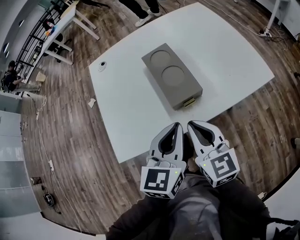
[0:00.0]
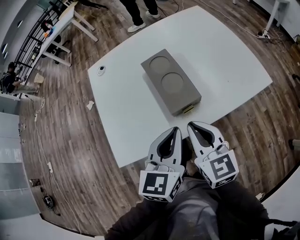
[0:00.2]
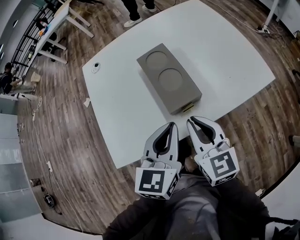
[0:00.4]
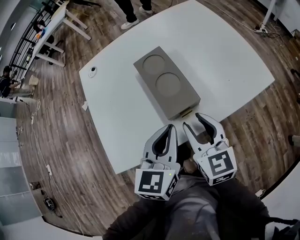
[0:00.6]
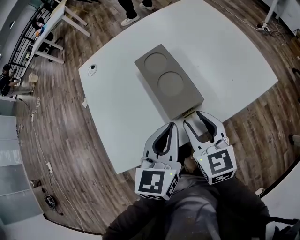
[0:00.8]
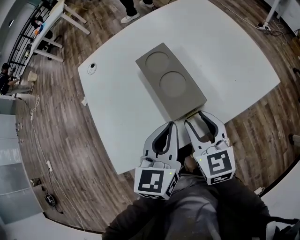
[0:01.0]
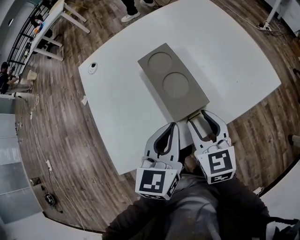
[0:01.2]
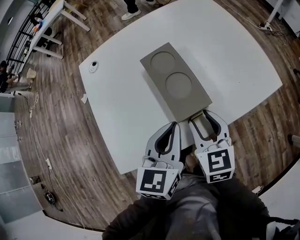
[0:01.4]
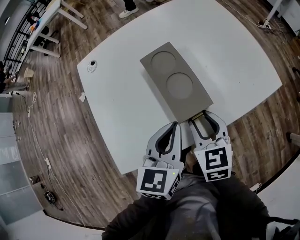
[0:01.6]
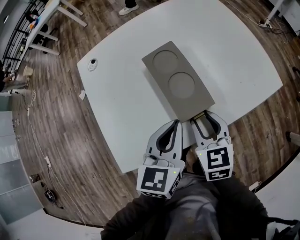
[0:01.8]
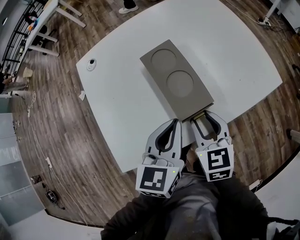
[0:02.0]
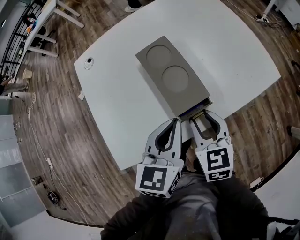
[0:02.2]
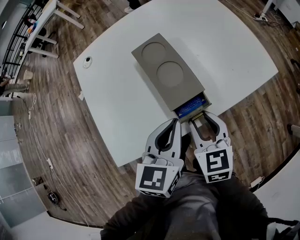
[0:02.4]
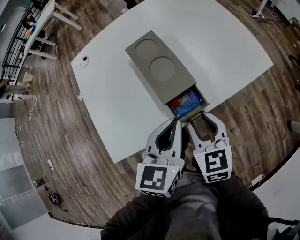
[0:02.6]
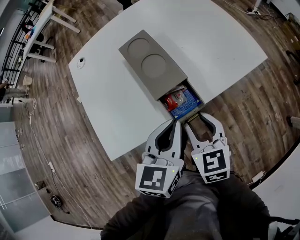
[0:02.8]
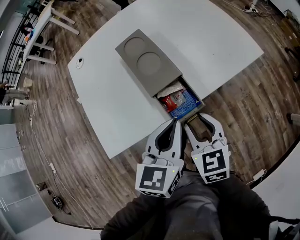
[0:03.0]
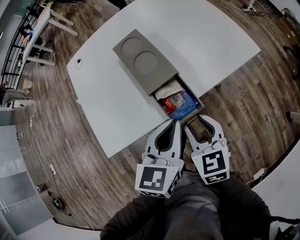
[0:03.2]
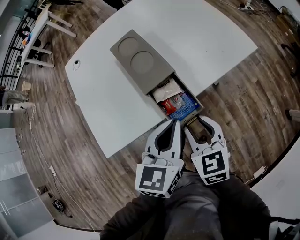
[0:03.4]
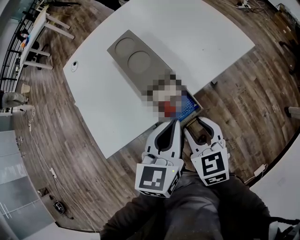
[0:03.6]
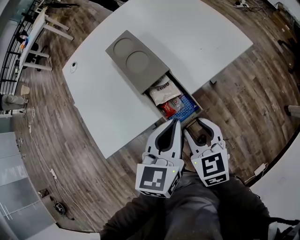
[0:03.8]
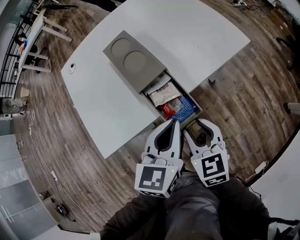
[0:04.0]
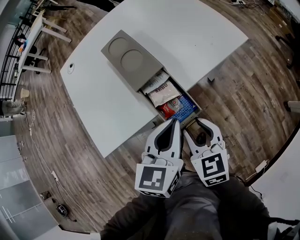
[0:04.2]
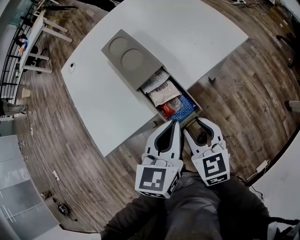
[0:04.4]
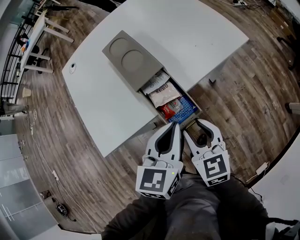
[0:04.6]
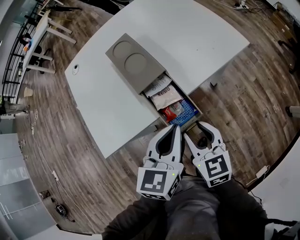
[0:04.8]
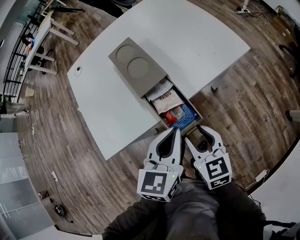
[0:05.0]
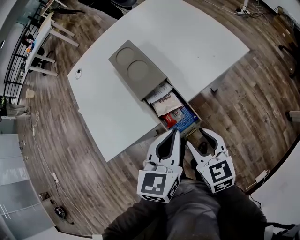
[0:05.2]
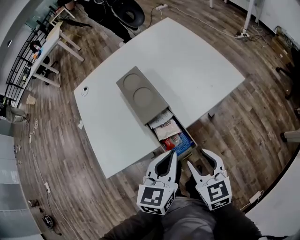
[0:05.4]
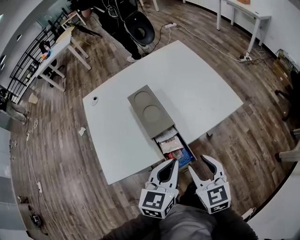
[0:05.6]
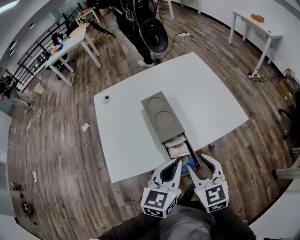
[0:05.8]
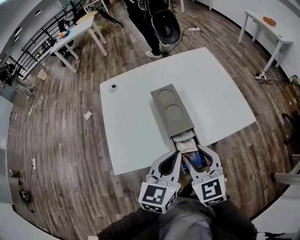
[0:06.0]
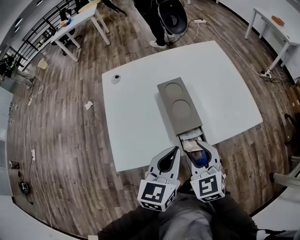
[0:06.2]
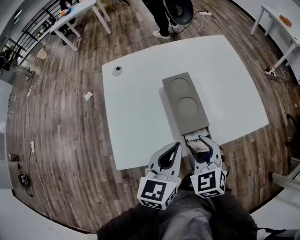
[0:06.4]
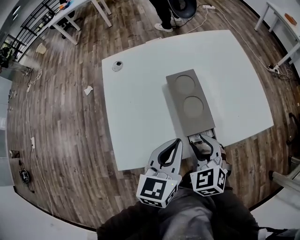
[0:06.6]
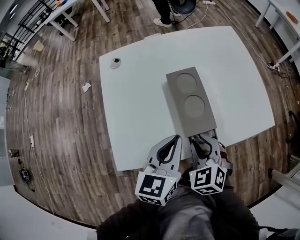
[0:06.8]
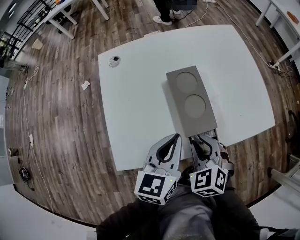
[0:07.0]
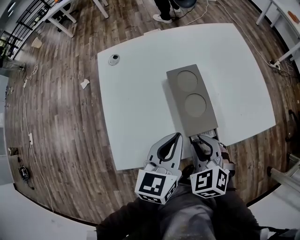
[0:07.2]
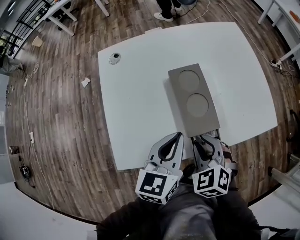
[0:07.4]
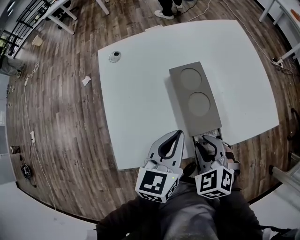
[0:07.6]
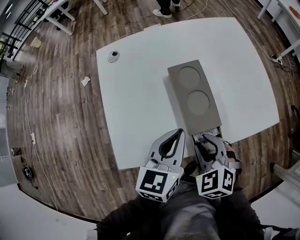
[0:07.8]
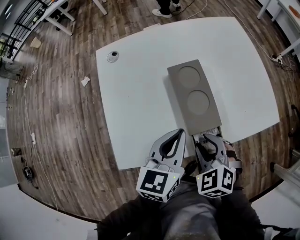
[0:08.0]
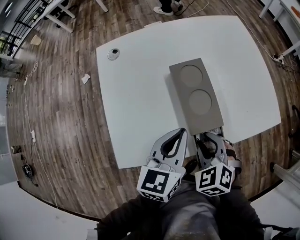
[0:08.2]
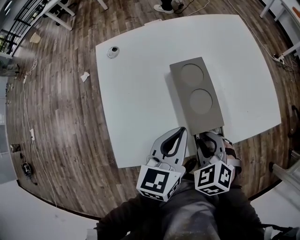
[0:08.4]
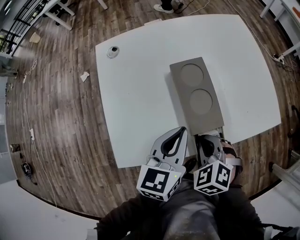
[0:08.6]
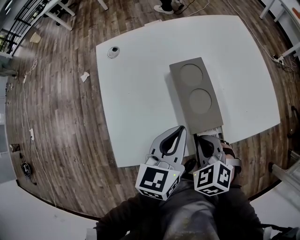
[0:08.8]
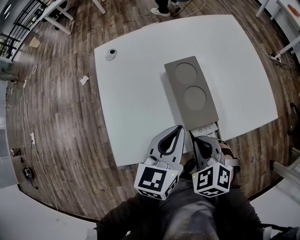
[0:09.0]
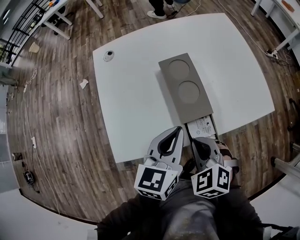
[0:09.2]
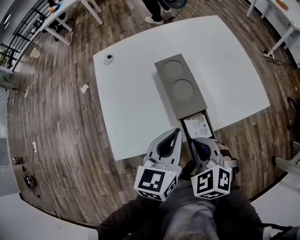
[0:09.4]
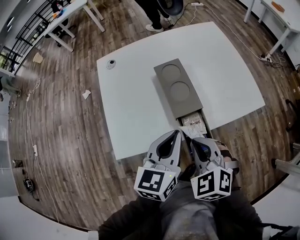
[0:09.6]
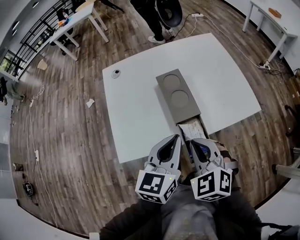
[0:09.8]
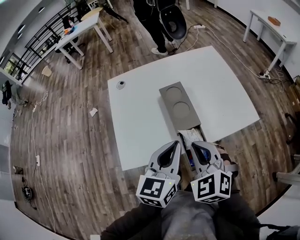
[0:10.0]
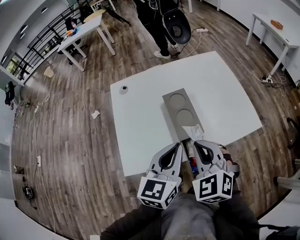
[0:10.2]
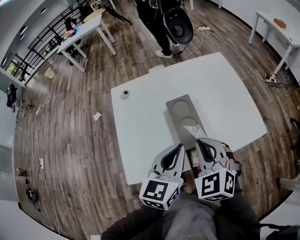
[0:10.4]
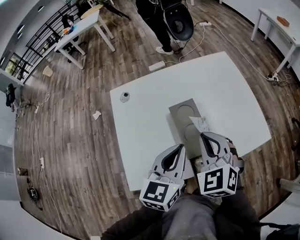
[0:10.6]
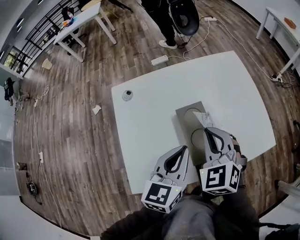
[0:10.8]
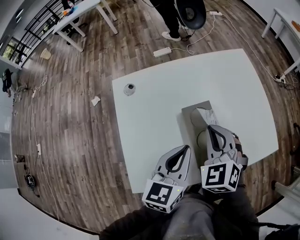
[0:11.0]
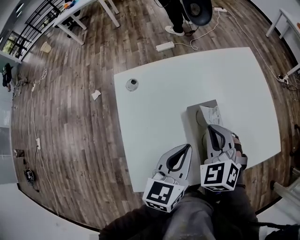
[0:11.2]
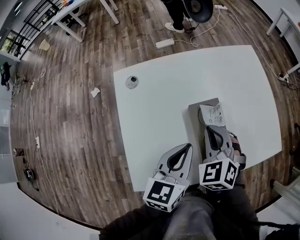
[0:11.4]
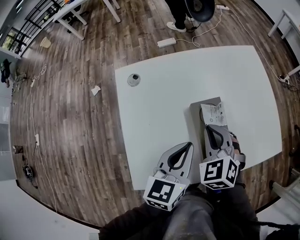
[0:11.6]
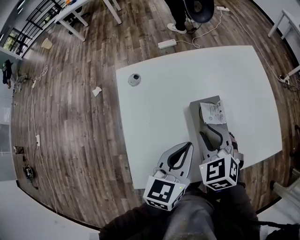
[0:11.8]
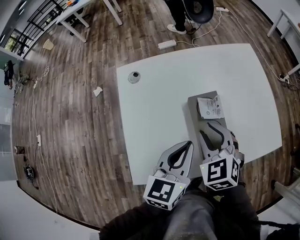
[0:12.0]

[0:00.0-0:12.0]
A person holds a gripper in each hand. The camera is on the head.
0:00.0 to 0:01.6: The left gripper heads forward, covering about 5 cm; the right gripper goes some 10 cm forward and downward, rotates approximately 20 degrees, and opens up.
0:01.6 to 0:03.0: The left gripper goes some 10 cm backward and to the right; the right gripper shifts some 10 cm backward.
0:03.0 to 0:04.4: The right gripper goes approximately 5 cm backward.
0:04.4 to 0:06.0: The right gripper goes roughly 15 cm upward and forward, and changes its angle by some 20 degrees. The left gripper goes approximately 10 cm upward.
0:06.0 to 0:07.6: The left gripper moves forward, to the left and downward, some 10 cm; the right gripper heads downward and forward, covering about 10 cm, and turns by some 30 degrees.
0:07.6 to 0:09.0: There are only small adjustments of the grippers.
0:09.0 to 0:10.4: The left gripper is displaced upward by some 10 cm; the right gripper is displaced upward by approximately 15 cm, and turns by some 20 degrees.
0:10.4 to 0:12.0: The right gripper shifts approximately 15 cm forward, downward and to the left. Meanwhile the left gripper heads forward, to the left and downward, covering some 10 cm.

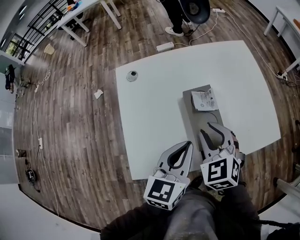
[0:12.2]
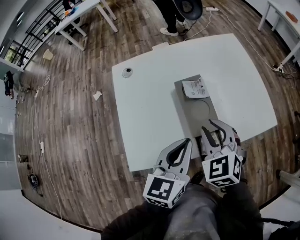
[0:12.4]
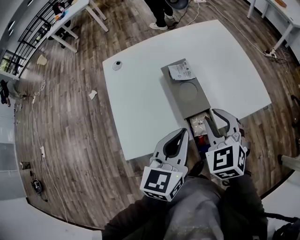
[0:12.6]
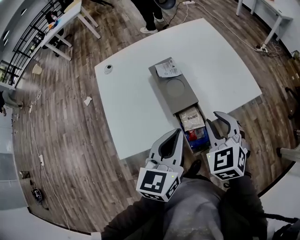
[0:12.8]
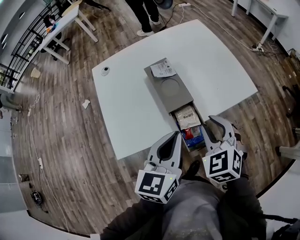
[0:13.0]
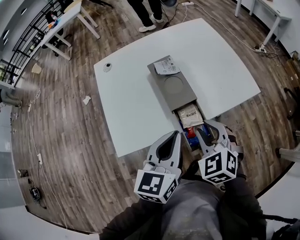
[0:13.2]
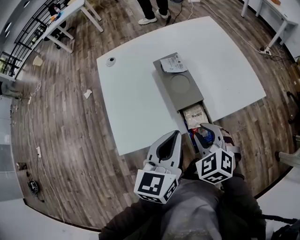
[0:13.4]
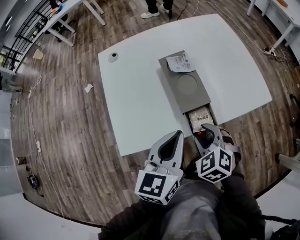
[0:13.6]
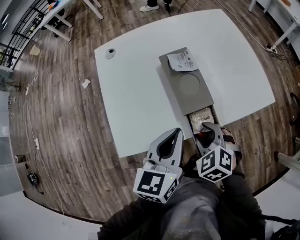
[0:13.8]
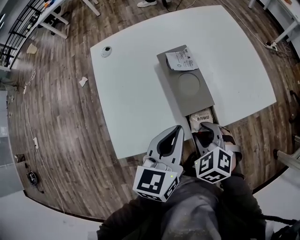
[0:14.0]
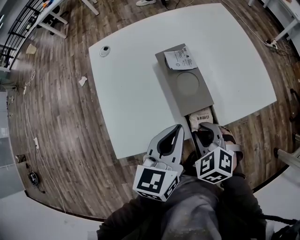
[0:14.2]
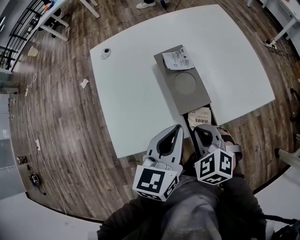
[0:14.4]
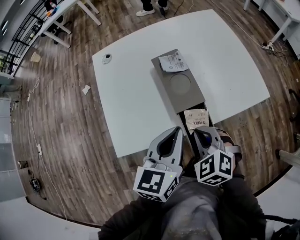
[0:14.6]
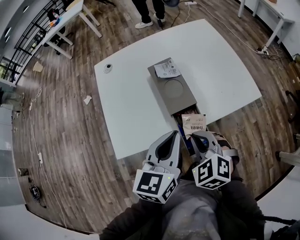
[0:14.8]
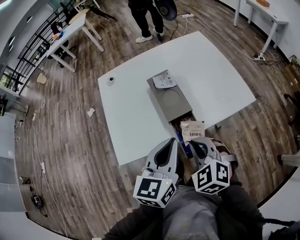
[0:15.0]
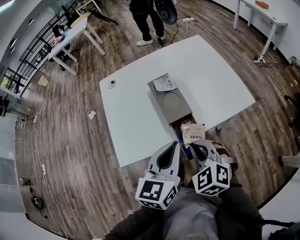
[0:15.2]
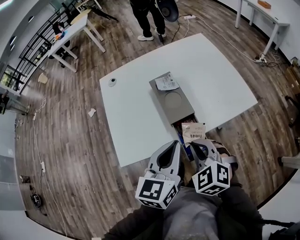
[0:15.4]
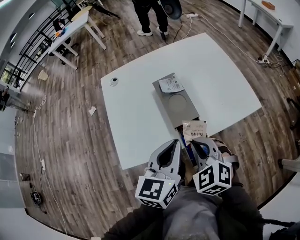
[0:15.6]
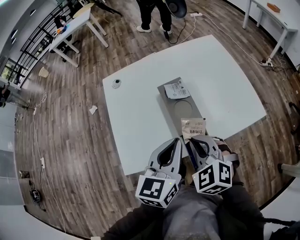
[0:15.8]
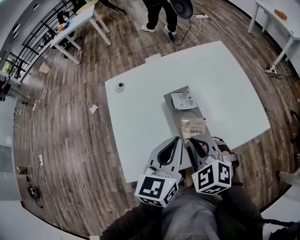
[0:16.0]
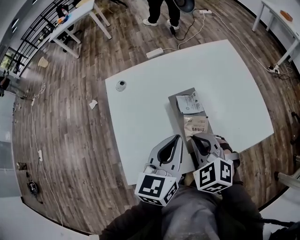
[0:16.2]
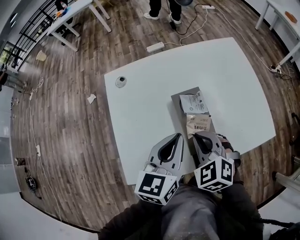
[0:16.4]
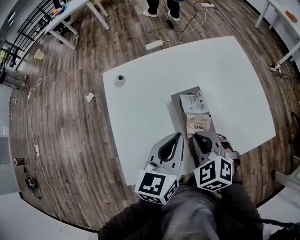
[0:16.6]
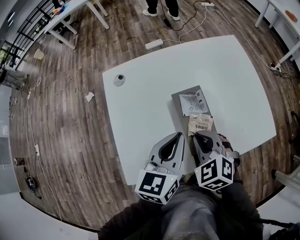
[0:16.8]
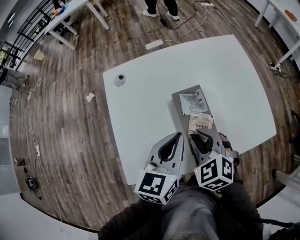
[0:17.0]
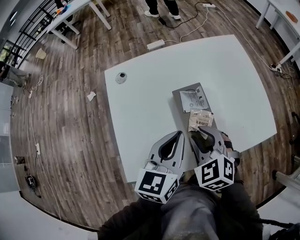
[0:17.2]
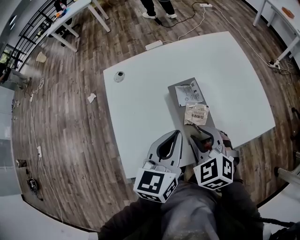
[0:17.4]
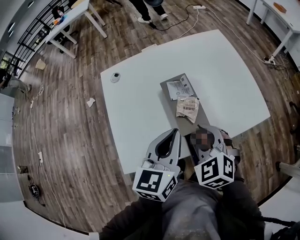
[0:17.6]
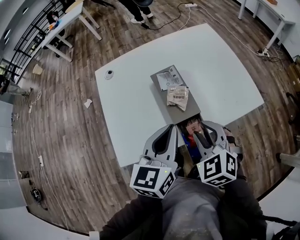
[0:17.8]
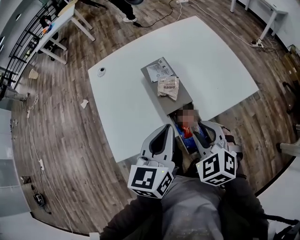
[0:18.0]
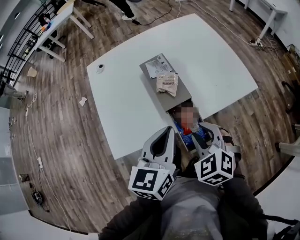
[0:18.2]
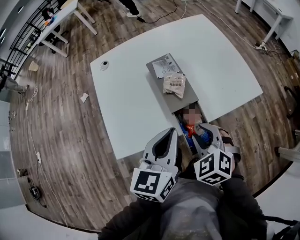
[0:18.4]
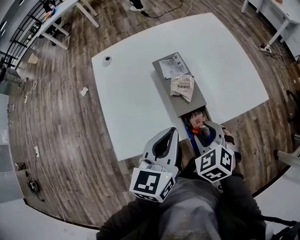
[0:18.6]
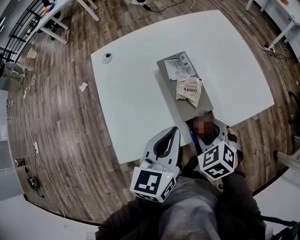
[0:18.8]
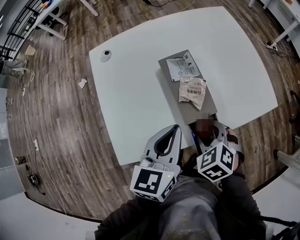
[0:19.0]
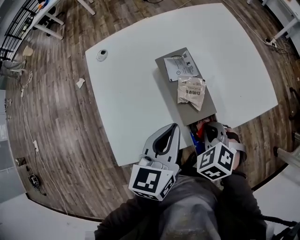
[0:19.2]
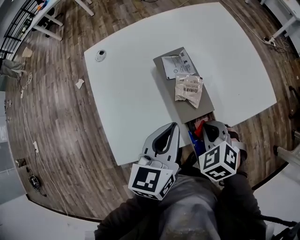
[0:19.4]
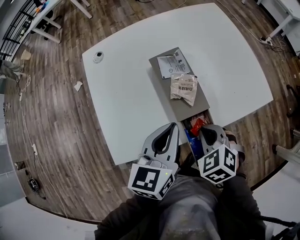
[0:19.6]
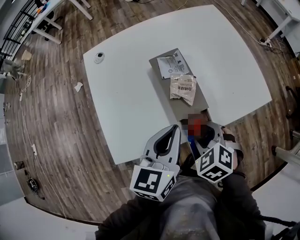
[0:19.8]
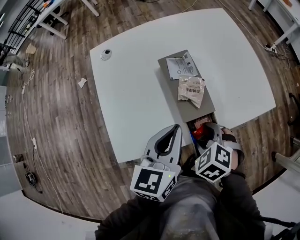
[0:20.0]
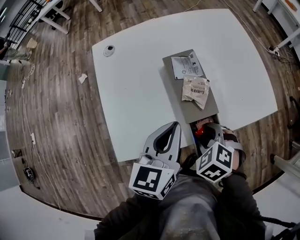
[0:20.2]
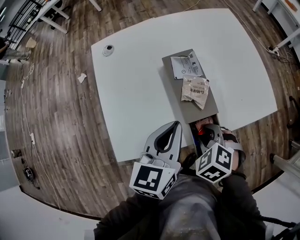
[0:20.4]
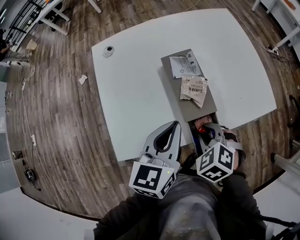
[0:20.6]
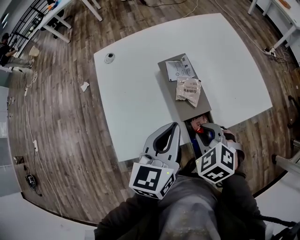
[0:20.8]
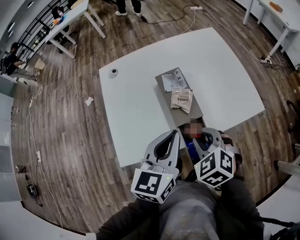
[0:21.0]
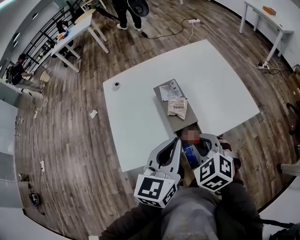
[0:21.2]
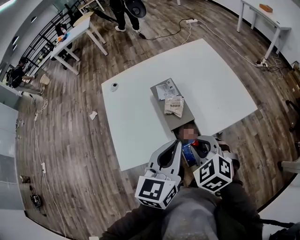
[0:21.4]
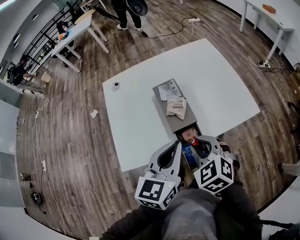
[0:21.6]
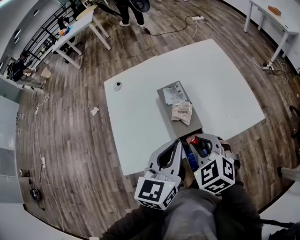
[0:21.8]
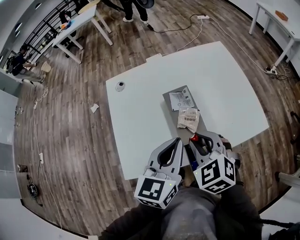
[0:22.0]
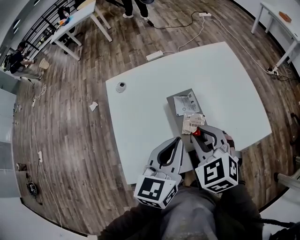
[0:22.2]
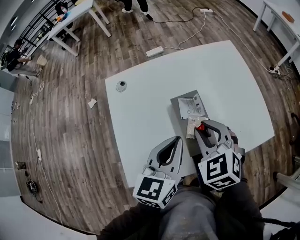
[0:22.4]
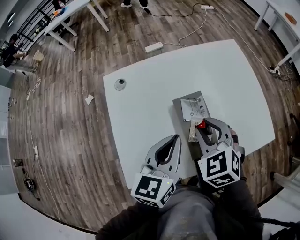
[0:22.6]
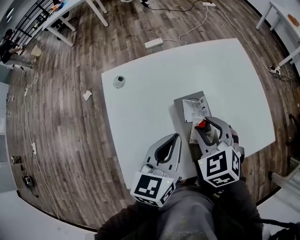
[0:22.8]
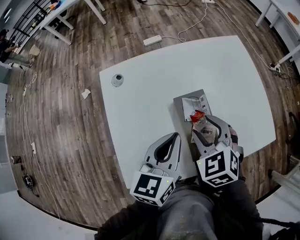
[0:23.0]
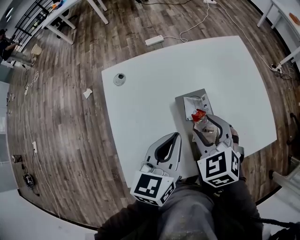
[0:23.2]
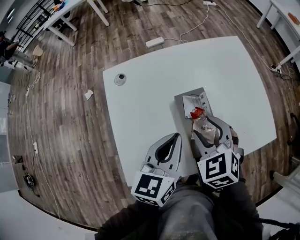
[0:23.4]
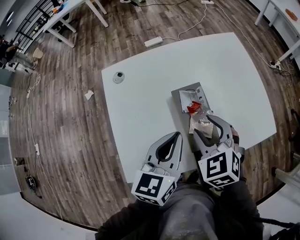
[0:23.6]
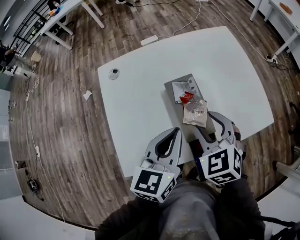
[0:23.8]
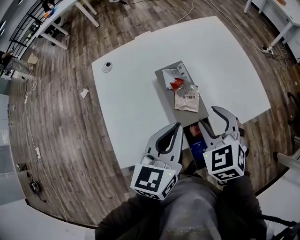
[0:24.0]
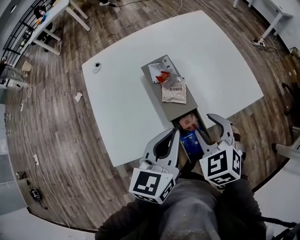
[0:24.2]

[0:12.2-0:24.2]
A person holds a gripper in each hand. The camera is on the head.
0:12.2 to 0:13.8: The left gripper goes approximately 10 cm backward. Meanwhile the right gripper goes approximately 20 cm backward, downward and to the right.
0:13.8 to 0:15.2: The right gripper travels upward by about 10 cm, and closes, while the left gripper moves backward, upward and to the right, roughly 10 cm.
0:15.2 to 0:16.6: The grippers both shift forward by approximately 20 cm.
0:16.6 to 0:18.2: The left gripper goes approximately 15 cm backward. Meanwhile the right gripper goes roughly 20 cm backward and to the right, and opens.
0:18.2 to 0:19.8: The right gripper travels downward by about 5 cm, and closes and opens again. Meanwhile the left gripper travels forward by roughly 5 cm.
0:19.8 to 0:21.2: The two grippers go roughly 10 cm upward.
0:21.2 to 0:22.6: The left gripper goes some 15 cm forward and to the left, while the right gripper is displaced forward by some 20 cm.
0:22.6 to 0:24.2: The two grippers go about 15 cm backward and to the right. The right gripper opens up.
